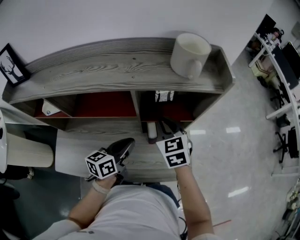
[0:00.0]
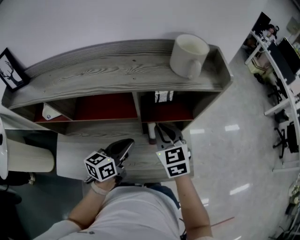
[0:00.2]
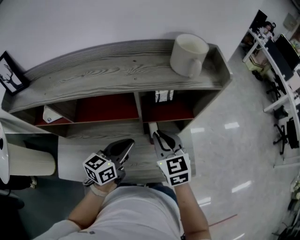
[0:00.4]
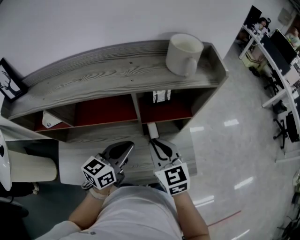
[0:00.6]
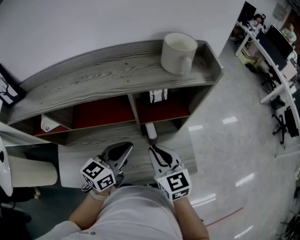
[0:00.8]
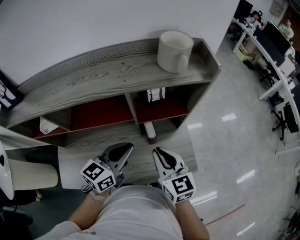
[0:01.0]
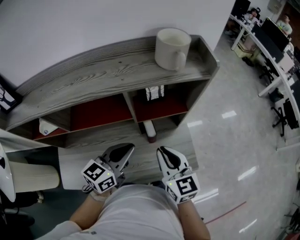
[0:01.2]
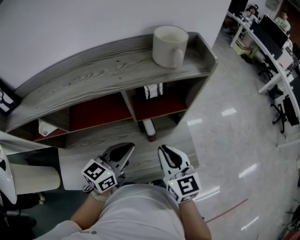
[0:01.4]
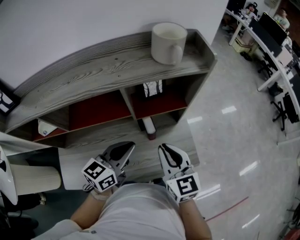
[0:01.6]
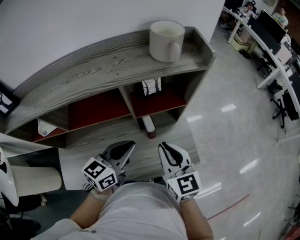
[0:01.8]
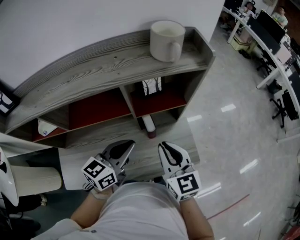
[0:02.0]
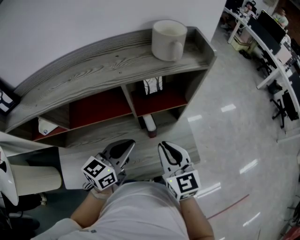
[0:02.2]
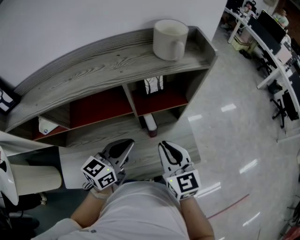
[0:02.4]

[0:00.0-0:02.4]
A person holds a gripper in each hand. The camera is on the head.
0:00.0 to 0:01.2: The left gripper shifts approximately 5 cm upward, and turns by approximately 30 degrees. Meanwhile the right gripper moves backward, approximately 15 cm, and rotates about 20 degrees.
0:01.2 to 0:02.4: The grippers stay close to where they were, moving slightly.

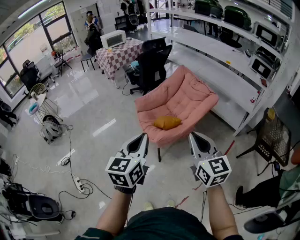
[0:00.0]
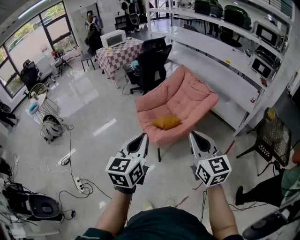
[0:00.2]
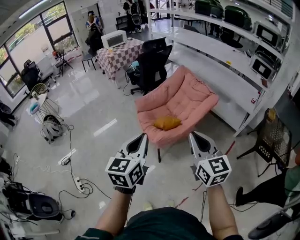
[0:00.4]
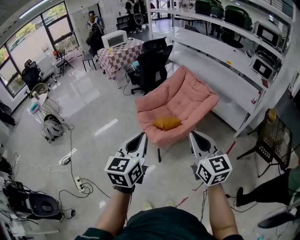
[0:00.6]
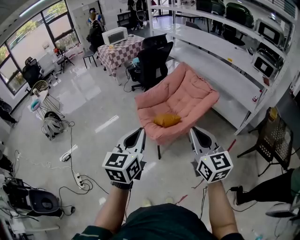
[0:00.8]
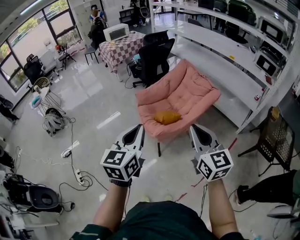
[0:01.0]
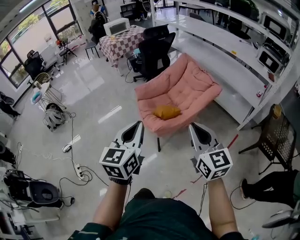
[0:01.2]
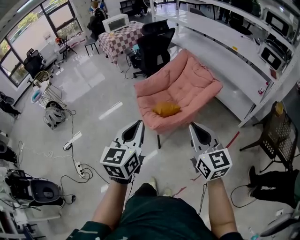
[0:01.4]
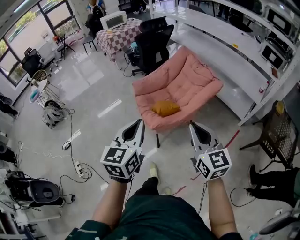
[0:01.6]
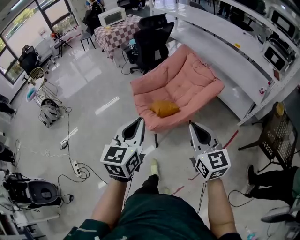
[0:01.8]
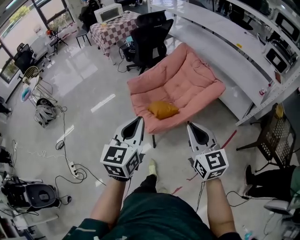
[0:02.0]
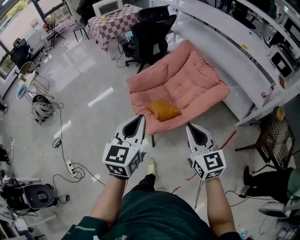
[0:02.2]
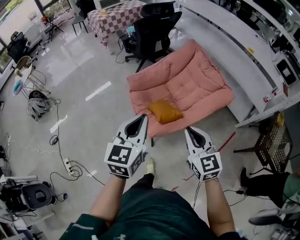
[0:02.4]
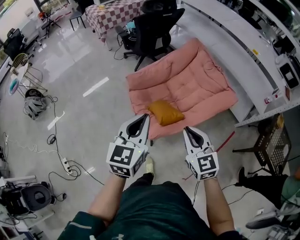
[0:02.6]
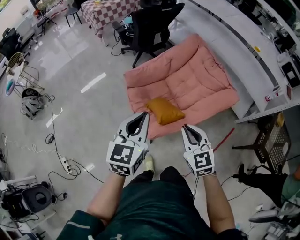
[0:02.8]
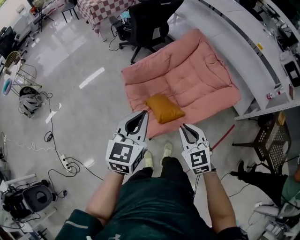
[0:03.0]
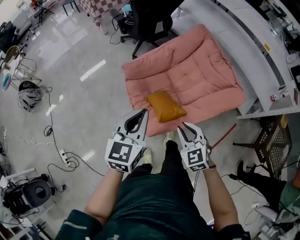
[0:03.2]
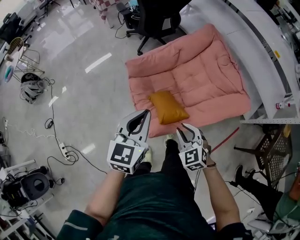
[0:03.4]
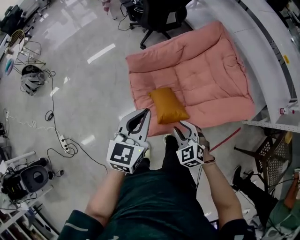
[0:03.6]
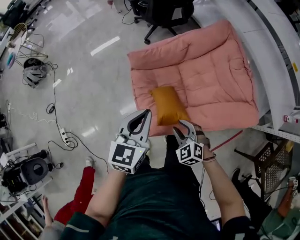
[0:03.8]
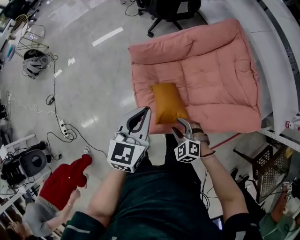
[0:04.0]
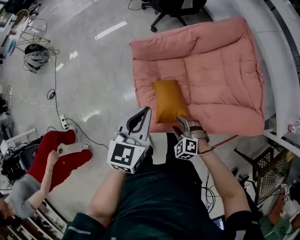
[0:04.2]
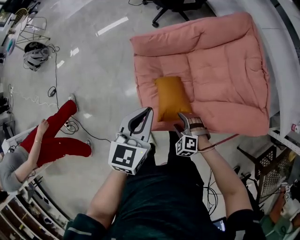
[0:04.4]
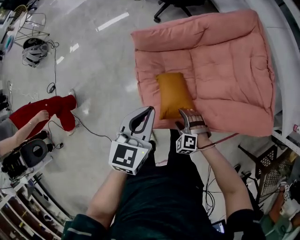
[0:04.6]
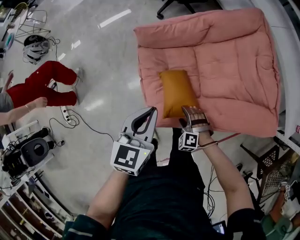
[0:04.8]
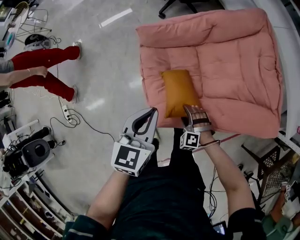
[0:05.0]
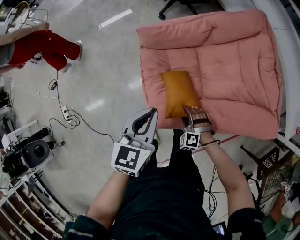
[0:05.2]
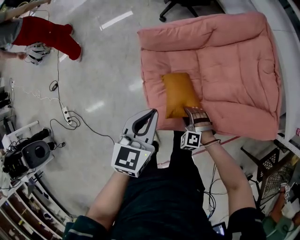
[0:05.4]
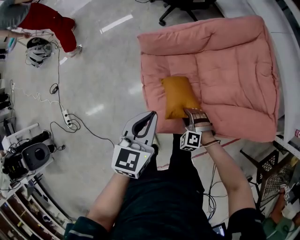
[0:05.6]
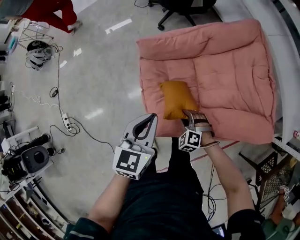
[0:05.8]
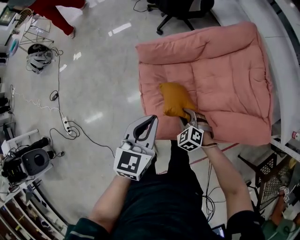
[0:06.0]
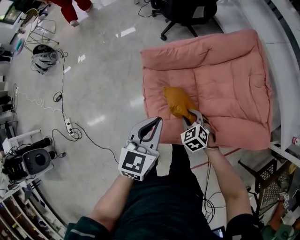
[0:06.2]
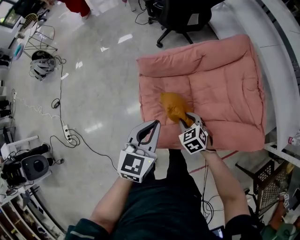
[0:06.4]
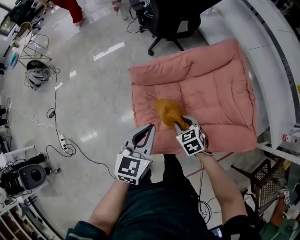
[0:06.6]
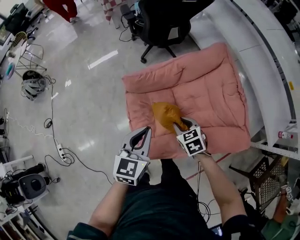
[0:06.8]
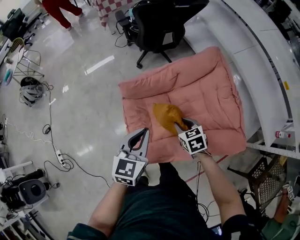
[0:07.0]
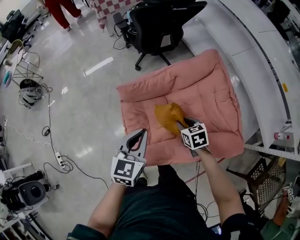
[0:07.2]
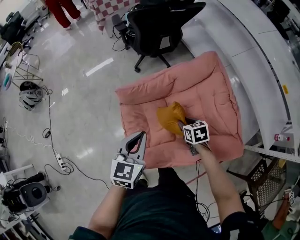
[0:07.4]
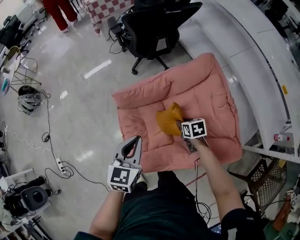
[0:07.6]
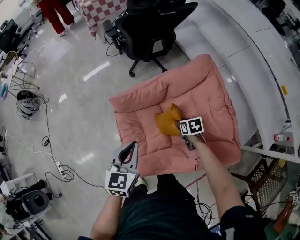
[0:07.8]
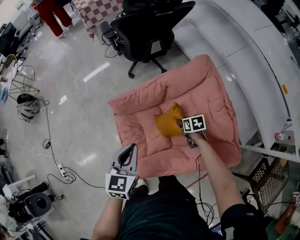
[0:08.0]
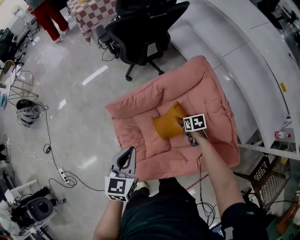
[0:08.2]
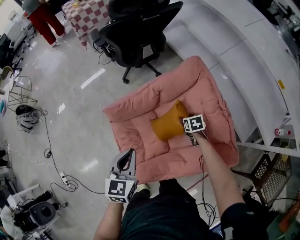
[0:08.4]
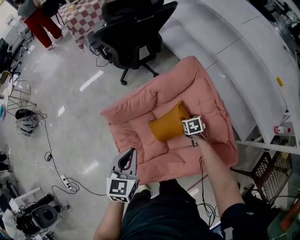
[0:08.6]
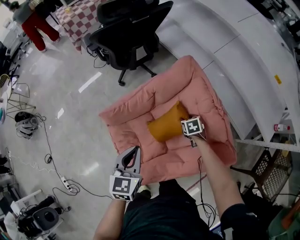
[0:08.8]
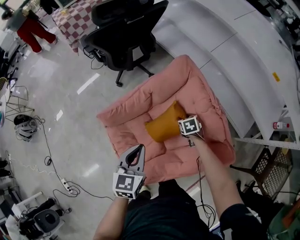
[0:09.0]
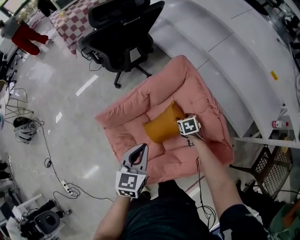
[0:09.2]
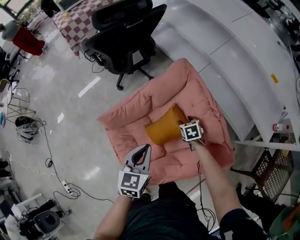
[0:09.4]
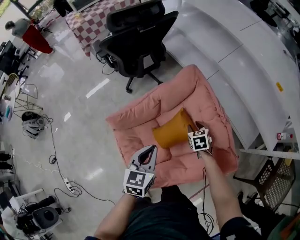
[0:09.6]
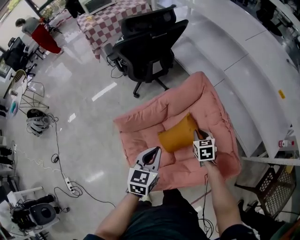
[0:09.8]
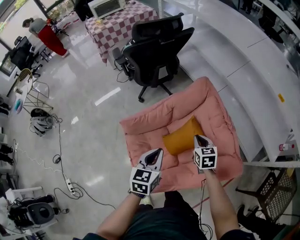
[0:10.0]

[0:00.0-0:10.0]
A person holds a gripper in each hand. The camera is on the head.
0:00.0 to 0:01.4: The grippers both shift to the right by approximately 5 cm.
0:01.4 to 0:02.8: The left gripper shifts approximately 30 cm forward; the right gripper shifts some 30 cm forward and downward, and turns by about 30 degrees.
0:02.8 to 0:04.2: The right gripper heads downward, covering about 30 cm, angles its fingers downward, by about 30 degrees, and opens up. The left gripper heads downward and forward, covering roughly 20 cm.
0:04.2 to 0:05.8: The right gripper shifts some 5 cm forward.
0:05.8 to 0:07.2: The right gripper goes roughly 25 cm upward, forward and to the right, and rotates around the line of its fingers by about 60 degrees, clockwise from behind. The left gripper travels forward, upward and to the right by roughly 10 cm.
0:07.2 to 0:08.6: The right gripper heads to the right, downward and forward, covering roughly 25 cm. Meanwhile the left gripper moves to the right and forward, some 5 cm.
0:08.6 to 0:10.0: The right gripper shifts roughly 15 cm upward, changes its angle by about 20 degrees, and closes its fingers.

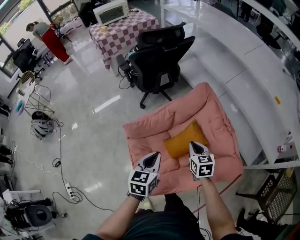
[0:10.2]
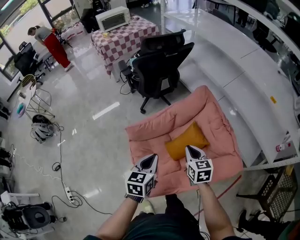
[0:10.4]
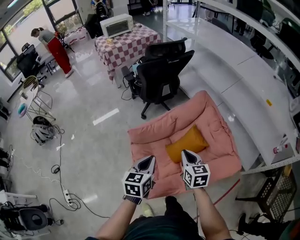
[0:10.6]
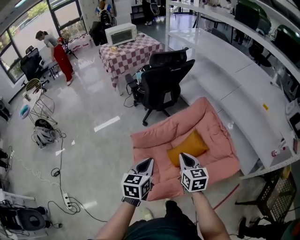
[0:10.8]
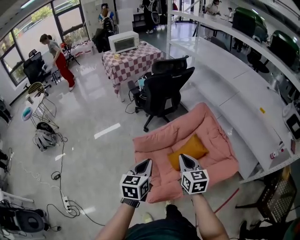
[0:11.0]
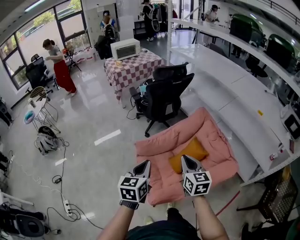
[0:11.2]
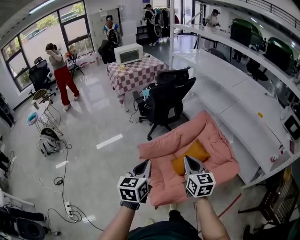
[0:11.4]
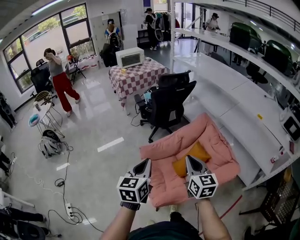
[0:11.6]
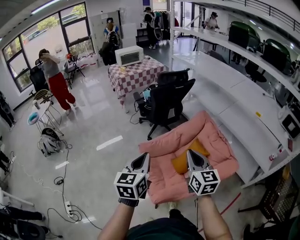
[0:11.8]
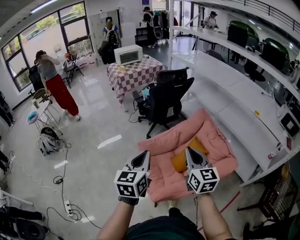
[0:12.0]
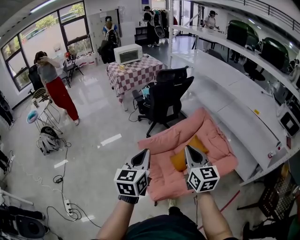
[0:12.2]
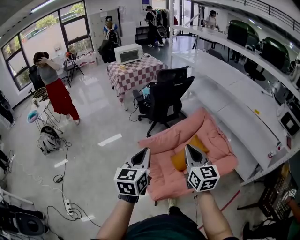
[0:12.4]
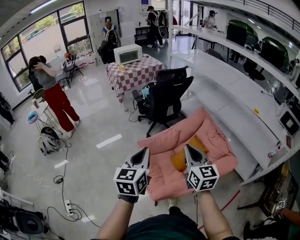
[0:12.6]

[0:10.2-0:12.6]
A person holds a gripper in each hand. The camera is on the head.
0:10.2 to 0:11.4: Both grippers move upward, backward and to the left, about 30 cm. The right gripper swivels about 20 degrees.
0:11.4 to 0:12.6: The grippers both shift upward by some 5 cm.

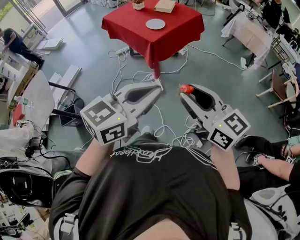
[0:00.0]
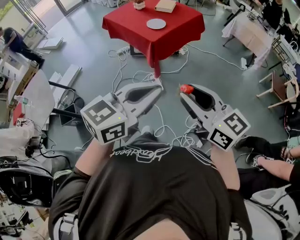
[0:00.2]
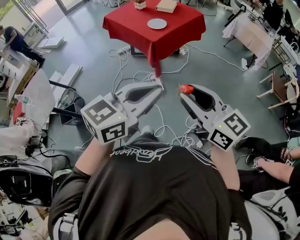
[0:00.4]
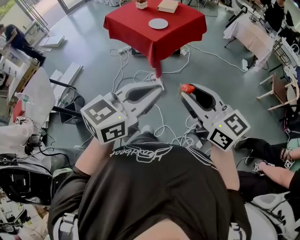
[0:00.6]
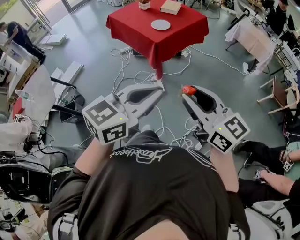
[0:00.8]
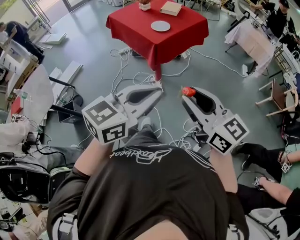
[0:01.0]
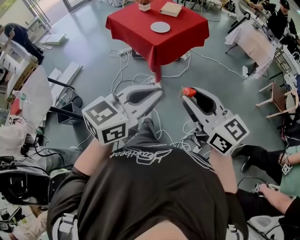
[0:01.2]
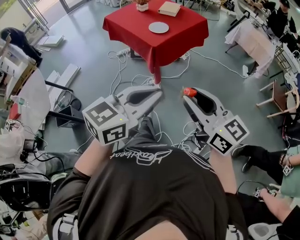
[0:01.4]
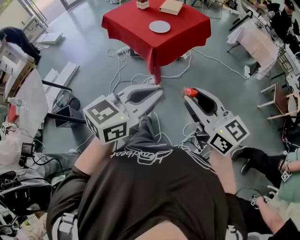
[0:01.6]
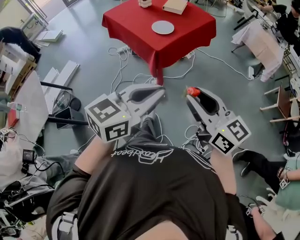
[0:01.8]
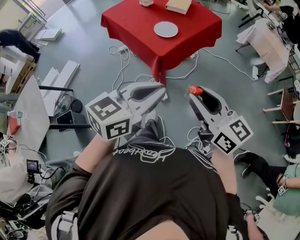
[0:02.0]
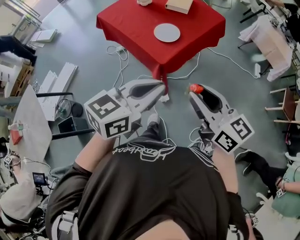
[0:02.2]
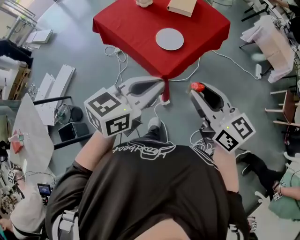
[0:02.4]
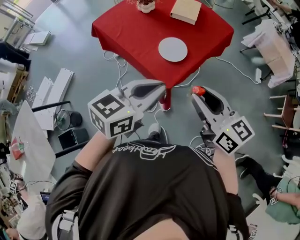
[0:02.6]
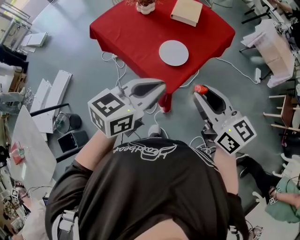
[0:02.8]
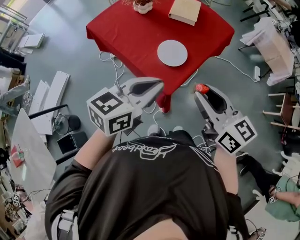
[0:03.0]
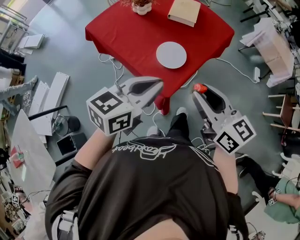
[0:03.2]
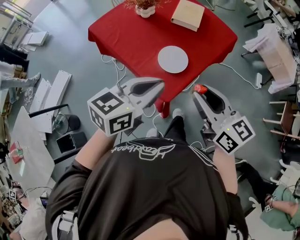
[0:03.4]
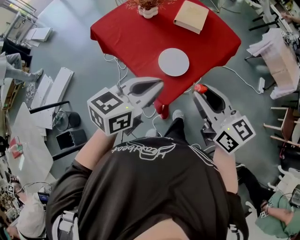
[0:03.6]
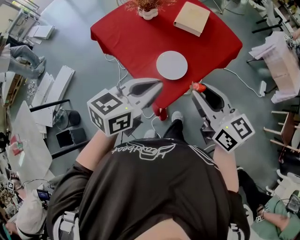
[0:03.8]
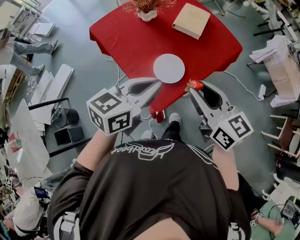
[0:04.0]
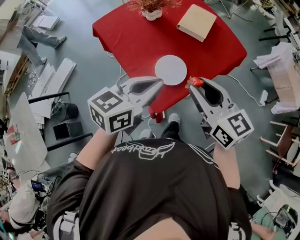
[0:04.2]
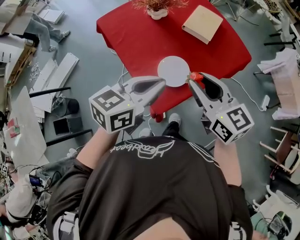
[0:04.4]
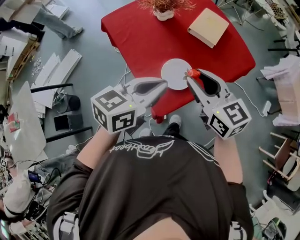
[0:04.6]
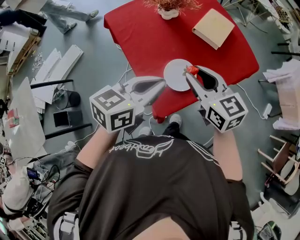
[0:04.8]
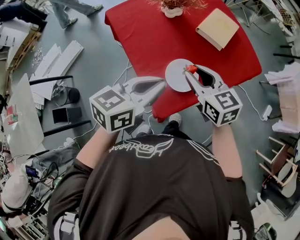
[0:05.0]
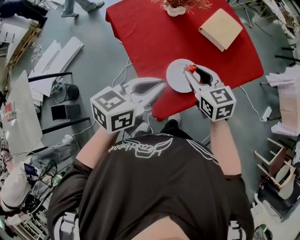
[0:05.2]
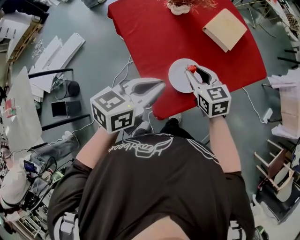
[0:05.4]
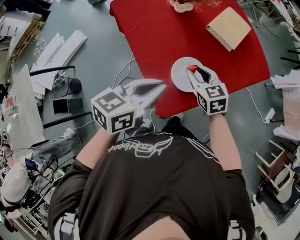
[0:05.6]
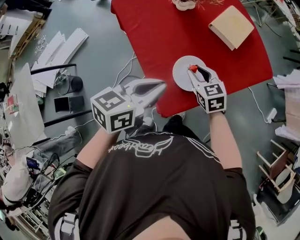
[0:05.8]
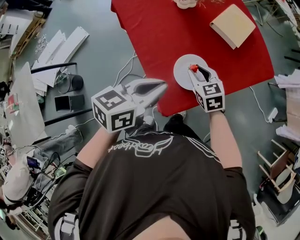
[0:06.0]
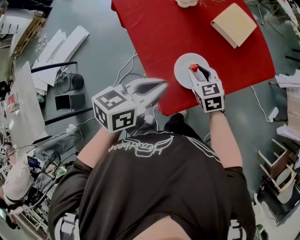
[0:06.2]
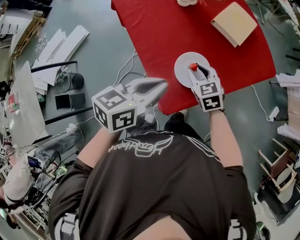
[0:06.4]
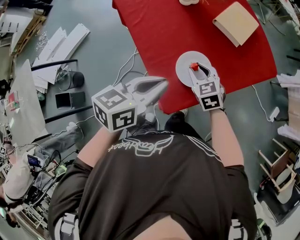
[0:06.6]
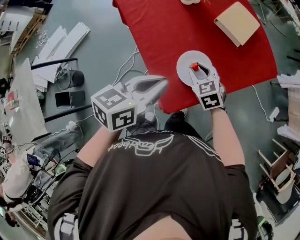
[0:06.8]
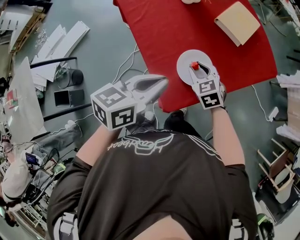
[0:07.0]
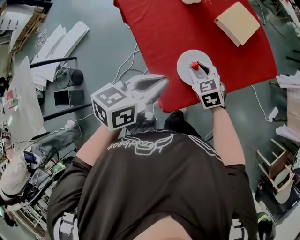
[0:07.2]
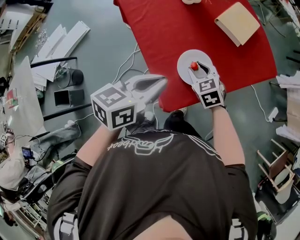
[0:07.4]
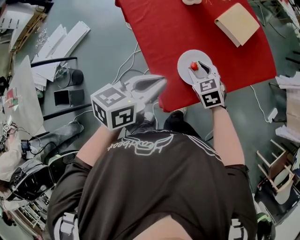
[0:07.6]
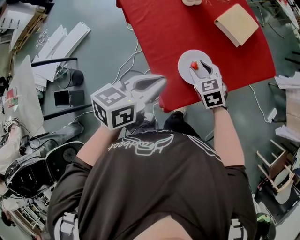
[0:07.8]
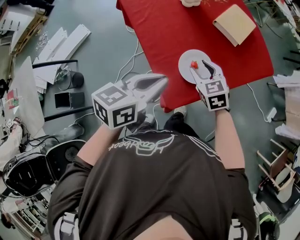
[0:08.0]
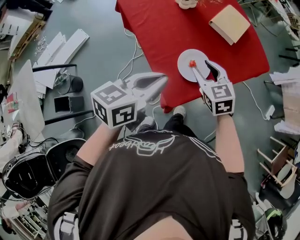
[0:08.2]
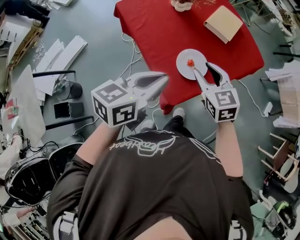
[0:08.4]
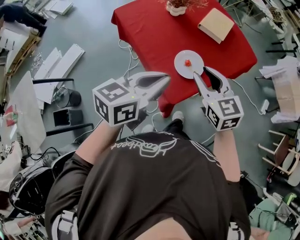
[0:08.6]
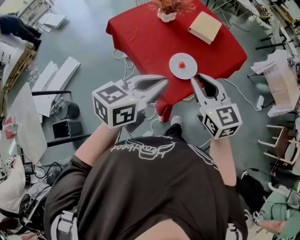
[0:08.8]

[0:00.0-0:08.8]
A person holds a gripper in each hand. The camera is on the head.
0:00.0 to 0:01.4: Both grippers move forward, some 5 cm.
0:01.4 to 0:03.0: Both grippers are carried forward, approximately 50 cm.
0:03.0 to 0:04.4: The grippers both shift forward by about 15 cm.
0:04.4 to 0:05.8: The right gripper is displaced downward and forward by approximately 25 cm, and turns by some 30 degrees. Meanwhile the left gripper goes about 10 cm downward and to the left.
0:05.8 to 0:07.4: The grippers move only a little.
0:07.4 to 0:08.8: The right gripper moves upward and backward, approximately 30 cm, and swivels approximately 30 degrees. The left gripper moves upward and backward, approximately 15 cm, and swivels approximately 20 degrees.
